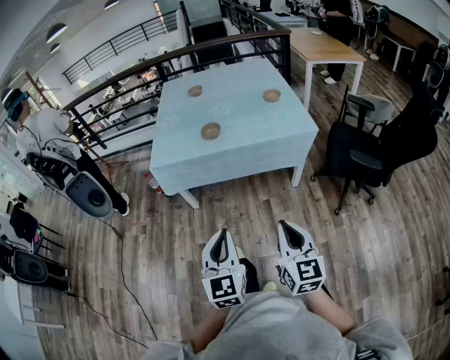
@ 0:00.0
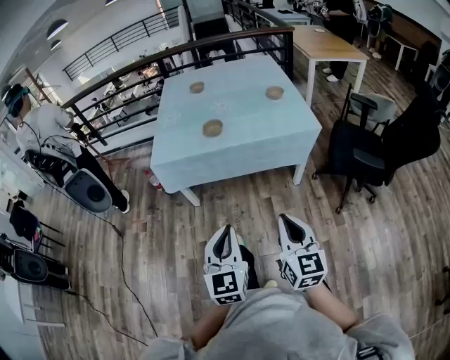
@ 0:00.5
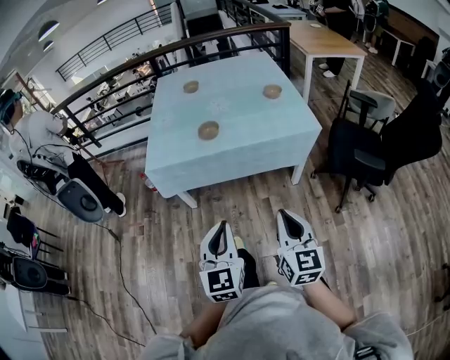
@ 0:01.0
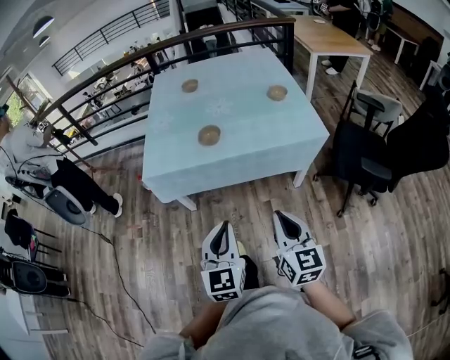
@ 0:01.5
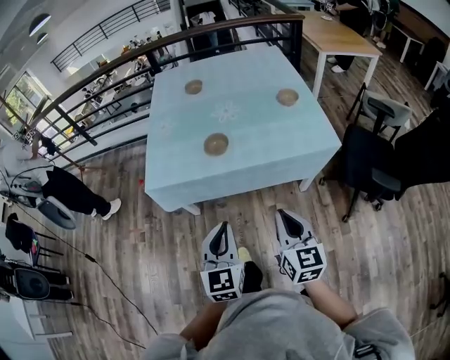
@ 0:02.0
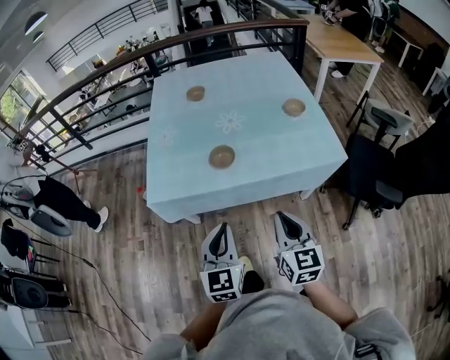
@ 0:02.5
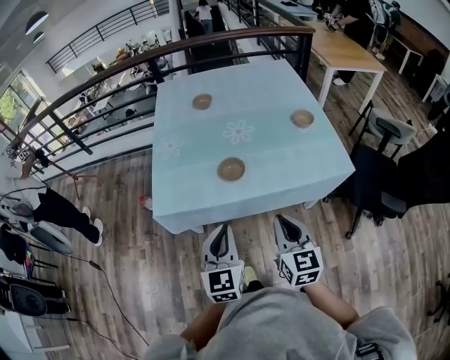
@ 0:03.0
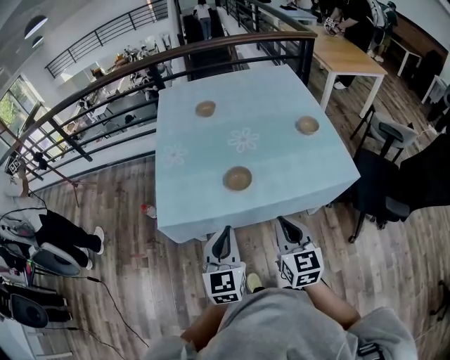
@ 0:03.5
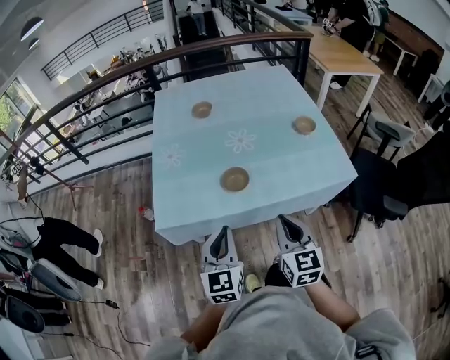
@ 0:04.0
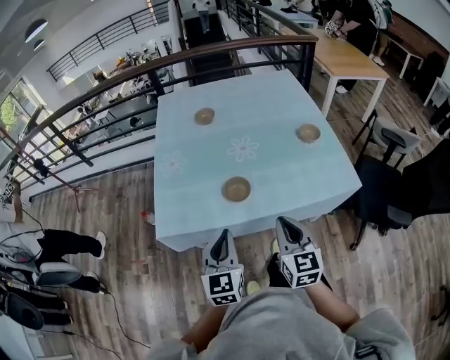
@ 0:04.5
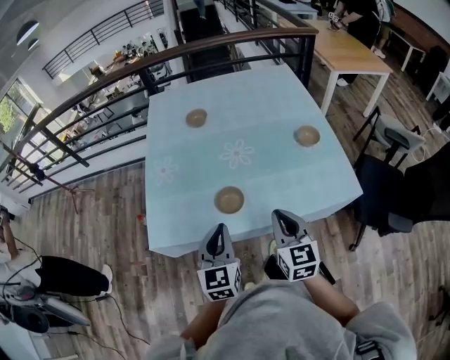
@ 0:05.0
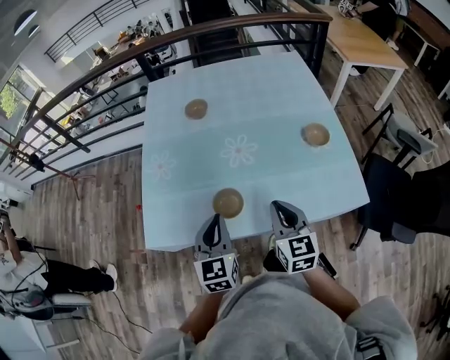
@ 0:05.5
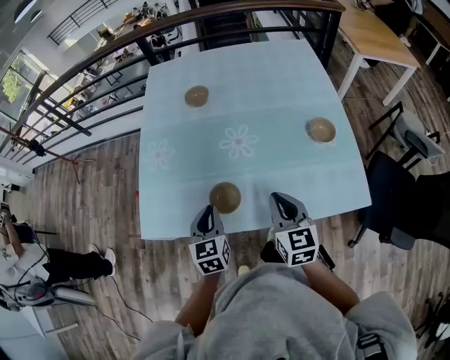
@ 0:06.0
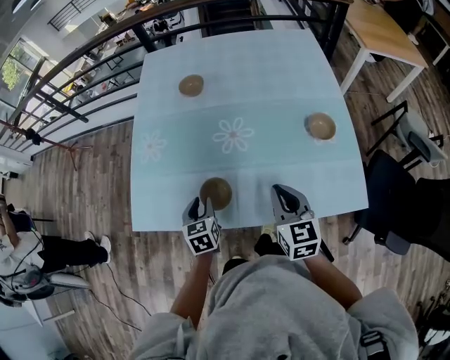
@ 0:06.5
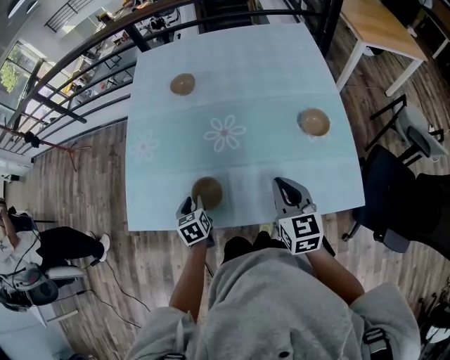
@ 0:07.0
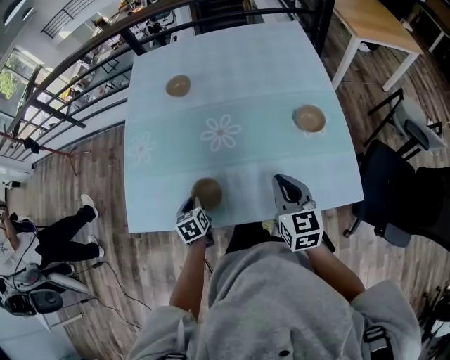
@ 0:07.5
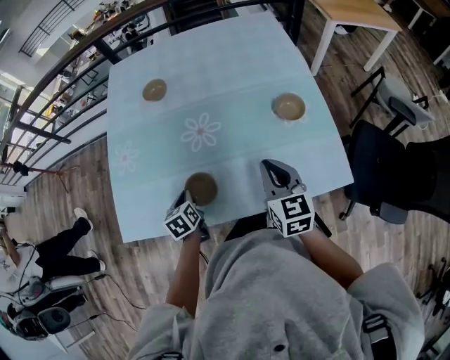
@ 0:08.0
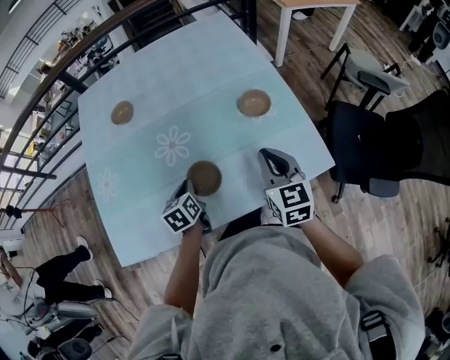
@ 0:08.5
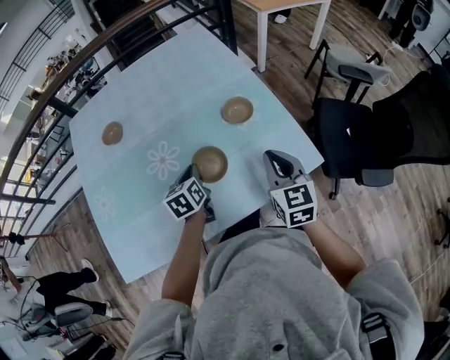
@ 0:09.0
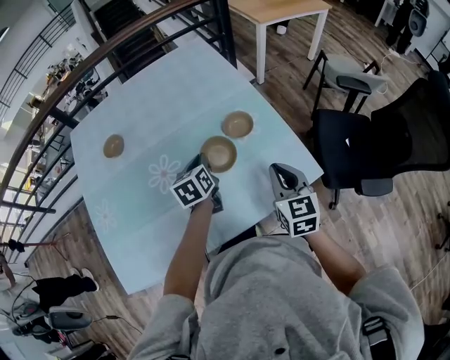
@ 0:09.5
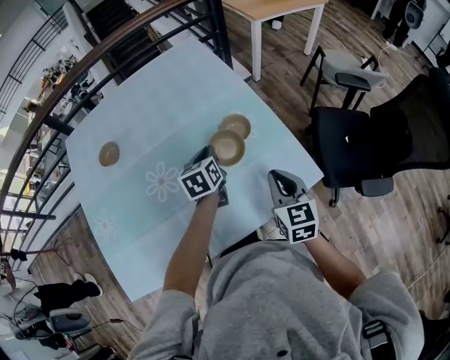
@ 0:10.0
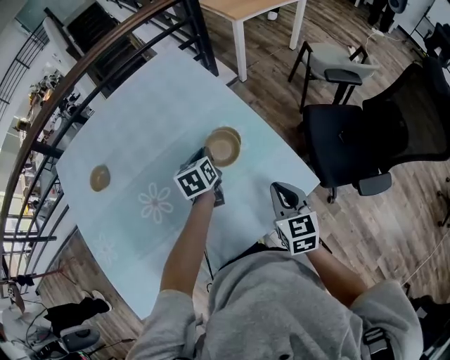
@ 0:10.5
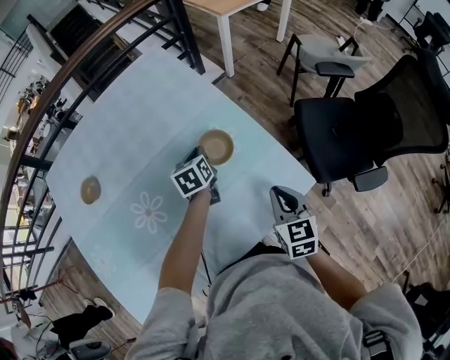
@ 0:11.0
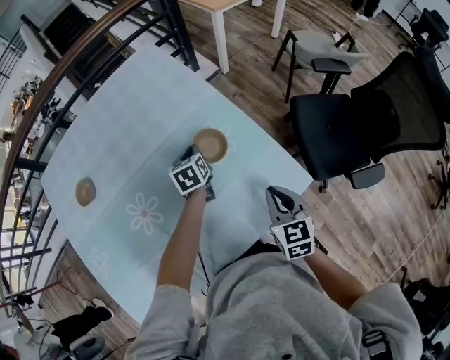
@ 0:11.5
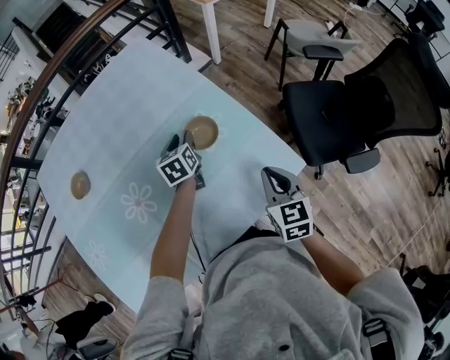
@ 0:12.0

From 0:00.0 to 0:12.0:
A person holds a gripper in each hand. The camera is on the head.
From 0:00.0 to 0:02.0: Both grippers travel together forward, approximately 25 cm.
From 0:02.0 to 0:04.0: Both grippers move forward and to the left, about 20 cm.
From 0:04.0 to 0:06.0: The left gripper travels forward and downward by about 20 cm, and changes its angle by about 20 degrees. The right gripper is displaced forward by approximately 20 cm.
From 0:06.0 to 0:08.0: The right gripper moves to the right, approximately 10 cm, while the left gripper moves downward and forward, about 10 cm, turns by approximately 20 degrees, and opens, then closes once more.
From 0:08.0 to 0:10.0: The left gripper changes place by some 40 cm, and changes its angle by about 30 degrees. The right gripper shifts by some 15 cm, and changes its angle by about 20 degrees.
From 0:10.0 to 0:12.0: The right gripper heads to the right, covering some 5 cm; the left gripper travels forward and downward by roughly 10 cm, and opens up.

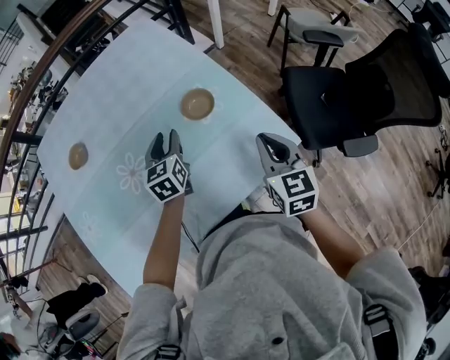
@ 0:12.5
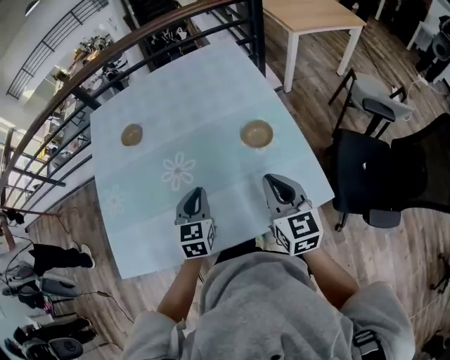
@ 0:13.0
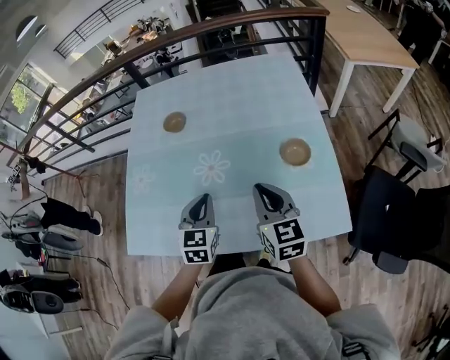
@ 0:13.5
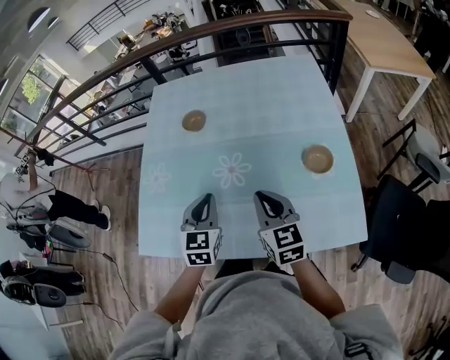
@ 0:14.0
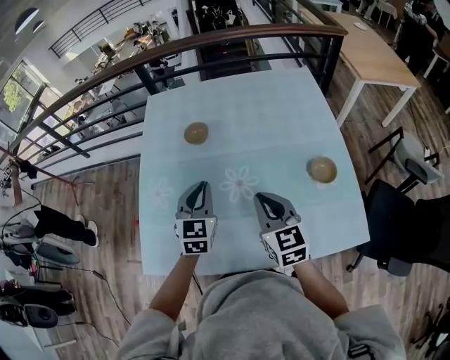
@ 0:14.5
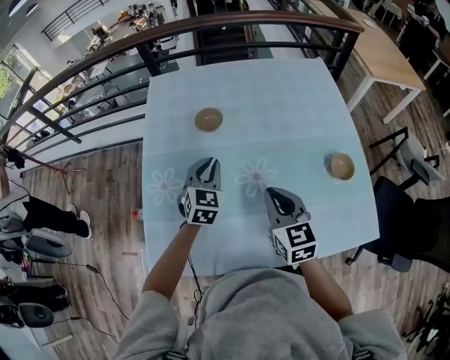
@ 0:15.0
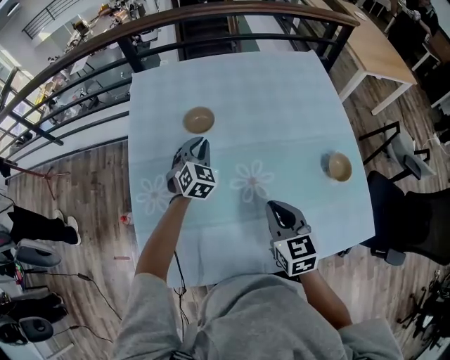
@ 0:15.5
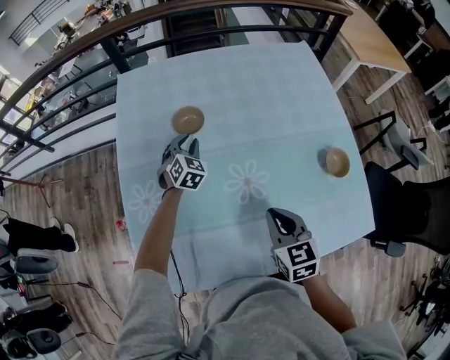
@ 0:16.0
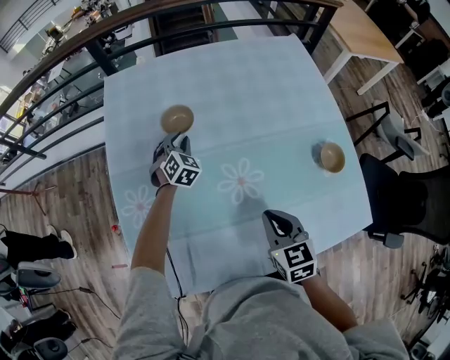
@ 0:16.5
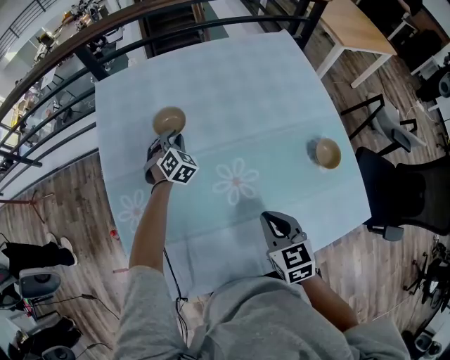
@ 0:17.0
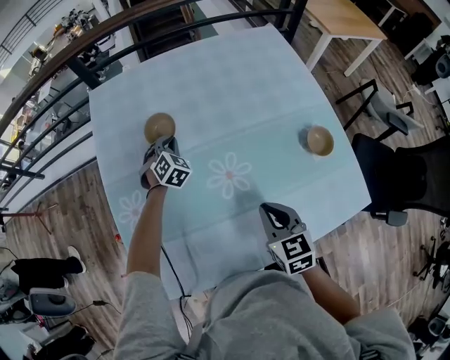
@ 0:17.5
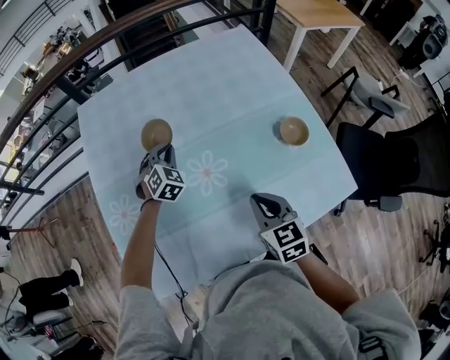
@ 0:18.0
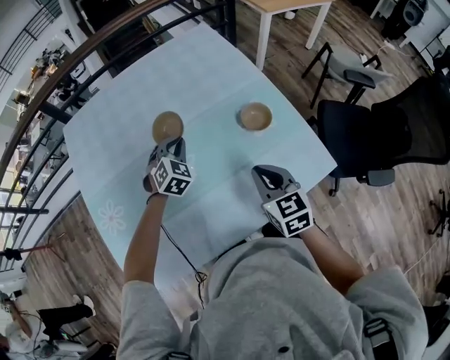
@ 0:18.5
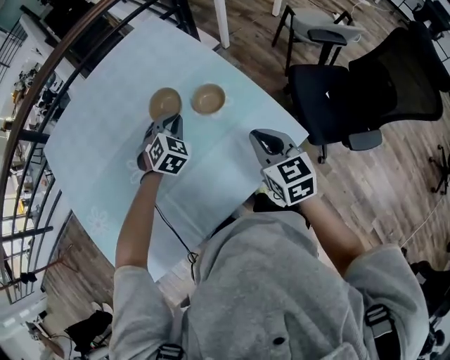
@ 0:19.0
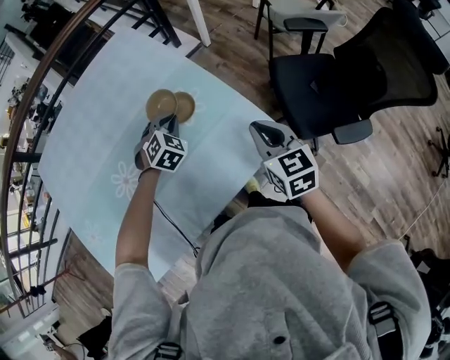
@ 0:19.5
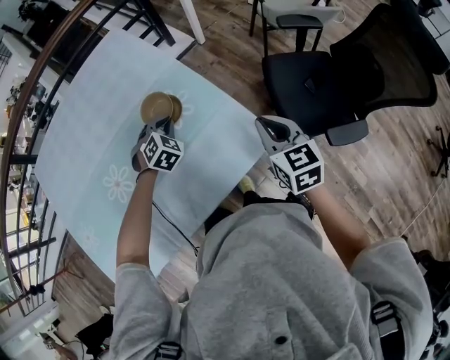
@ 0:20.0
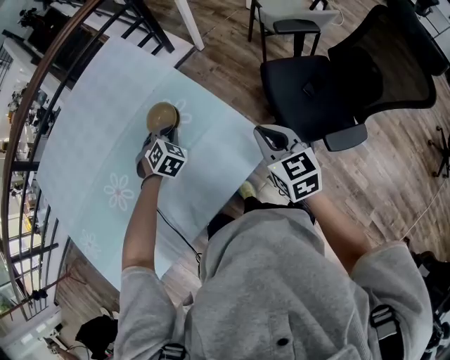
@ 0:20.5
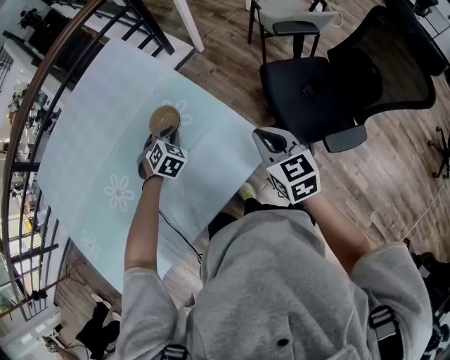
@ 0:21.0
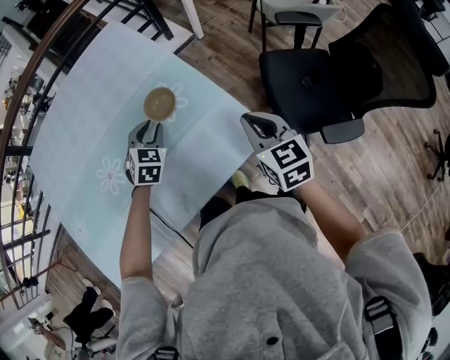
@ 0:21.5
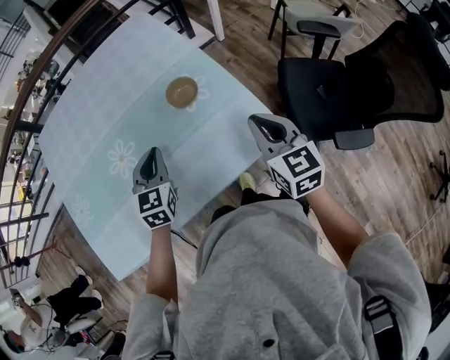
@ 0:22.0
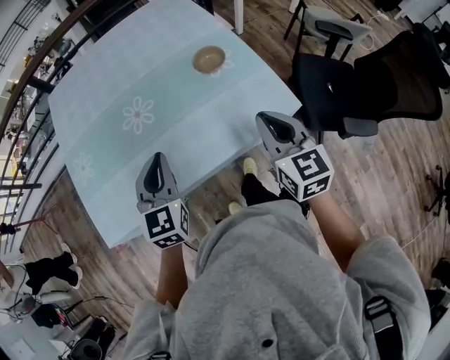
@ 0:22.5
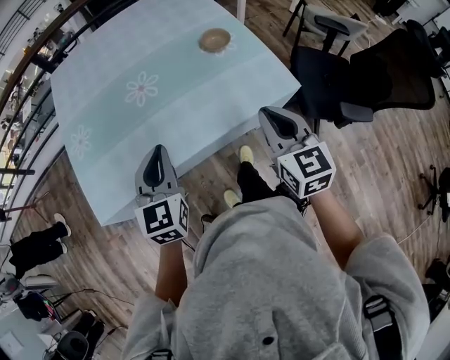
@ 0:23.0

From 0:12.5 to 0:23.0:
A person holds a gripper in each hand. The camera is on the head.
From 0:12.5 to 0:14.5: The right gripper shifts by roughly 40 cm, and turns by about 40 degrees. Meanwhile the left gripper shifts by some 35 cm, rotates roughly 20 degrees, and closes.
From 0:14.5 to 0:16.5: The right gripper travels downward by about 10 cm, and changes its angle by some 20 degrees; the left gripper travels forward and downward by about 30 cm, and rotates some 30 degrees.
From 0:16.5 to 0:19.0: The right gripper shifts by approximately 35 cm, and rotates roughly 20 degrees. Meanwhile the left gripper ends up roughly 40 cm from where it was, and turns by some 30 degrees.
From 0:19.0 to 0:21.0: The left gripper shifts some 15 cm to the right and downward, while the right gripper heads to the right, covering some 15 cm.
From 0:21.0 to 0:23.0: The left gripper moves backward, to the left and upward, approximately 50 cm, and points its fingers about 40 degrees further upward. The right gripper is displaced to the left, backward and upward by some 25 cm.

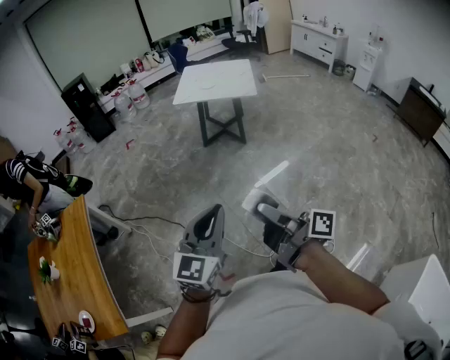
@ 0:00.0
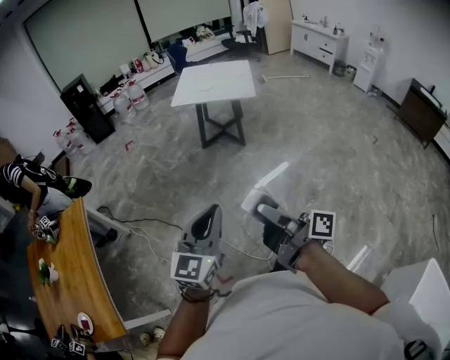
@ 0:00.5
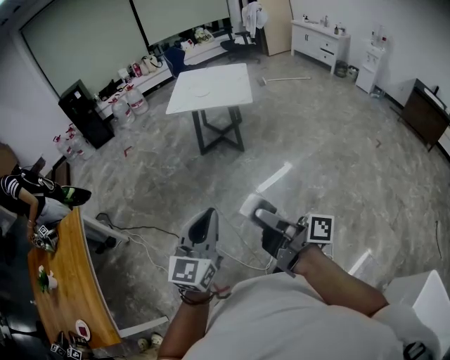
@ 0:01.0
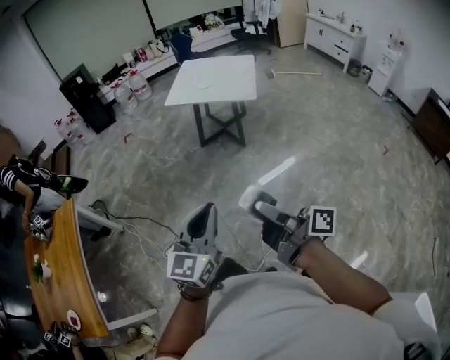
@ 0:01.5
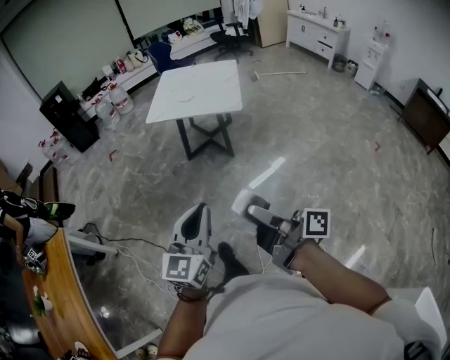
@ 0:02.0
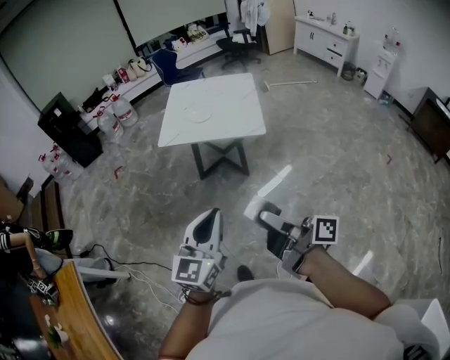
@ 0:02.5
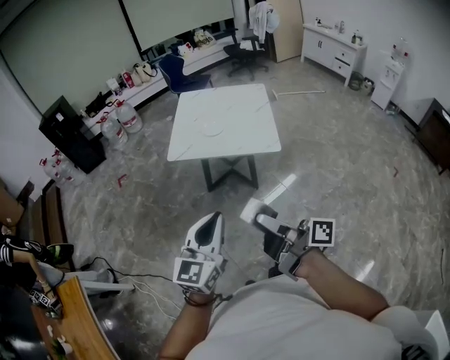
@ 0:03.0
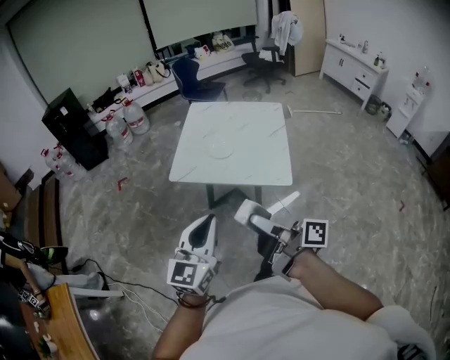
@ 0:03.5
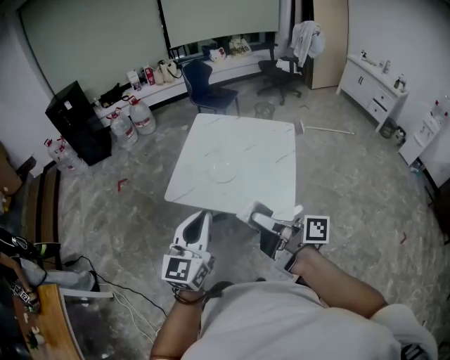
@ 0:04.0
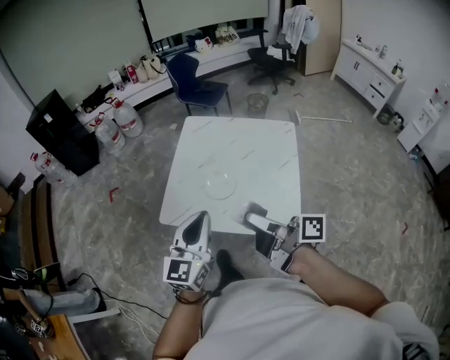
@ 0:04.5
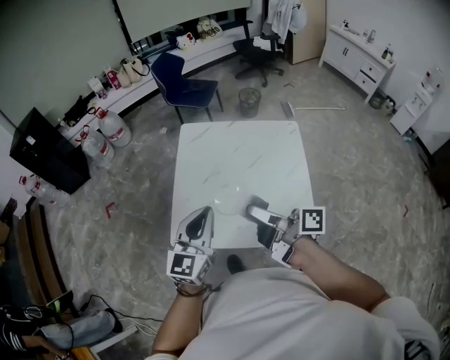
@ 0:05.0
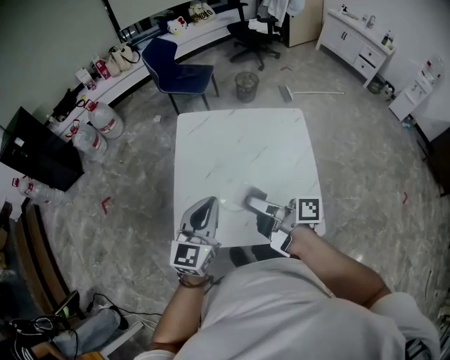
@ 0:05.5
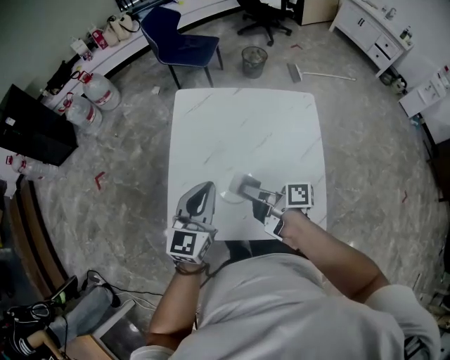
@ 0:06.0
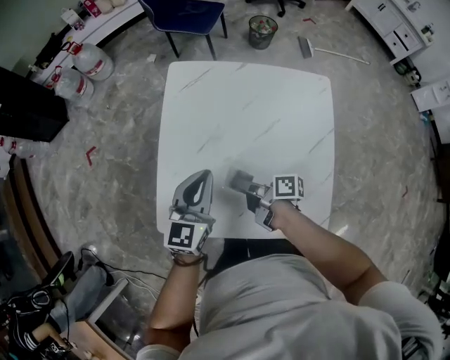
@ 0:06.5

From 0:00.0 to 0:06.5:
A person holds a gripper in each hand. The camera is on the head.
From 0:00.0 to 0:02.0: Both grippers travel together forward and to the right, about 35 cm.
From 0:02.0 to 0:04.5: Both grippers are carried forward, about 90 cm.
From 0:04.5 to 0:06.5: The left gripper moves forward and downward, some 40 cm. Meanwhile the right gripper heads downward and forward, covering some 50 cm, and rotates approximately 30 degrees.
